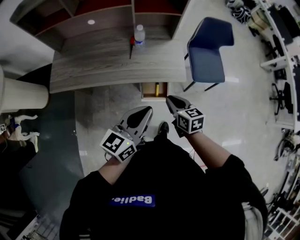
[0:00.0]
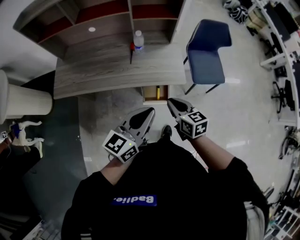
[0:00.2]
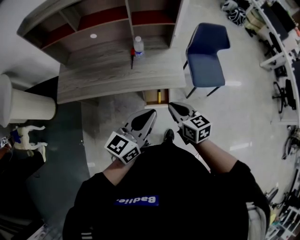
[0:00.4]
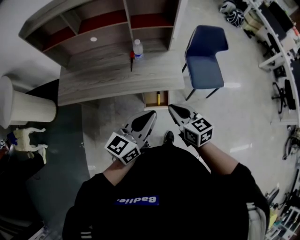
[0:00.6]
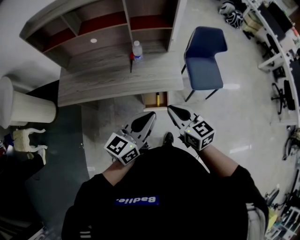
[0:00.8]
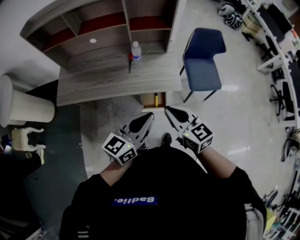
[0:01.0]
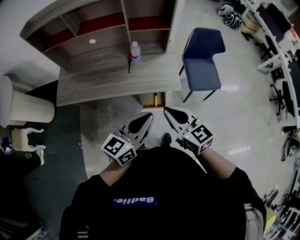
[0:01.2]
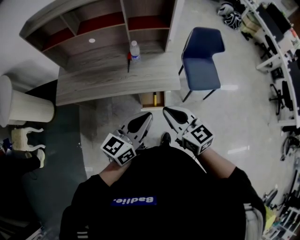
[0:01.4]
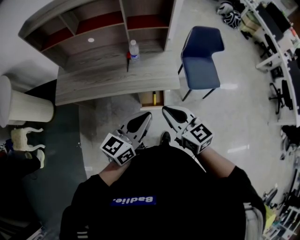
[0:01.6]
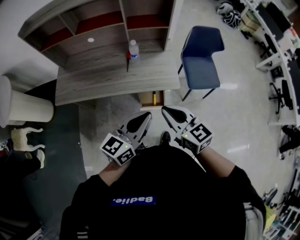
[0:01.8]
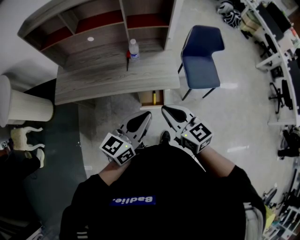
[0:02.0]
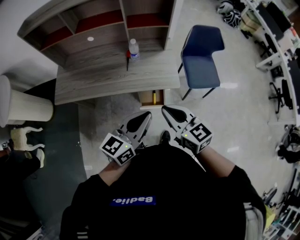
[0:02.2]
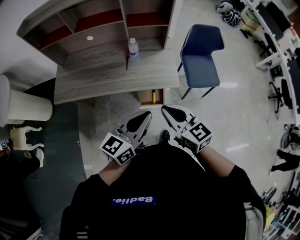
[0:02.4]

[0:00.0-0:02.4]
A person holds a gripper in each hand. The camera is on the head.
0:00.0 to 0:01.2: The left gripper shifts by some 5 cm. The right gripper is displaced upward by approximately 15 cm, and swivels some 30 degrees.
0:01.2 to 0:02.4: Neither gripper changes place.

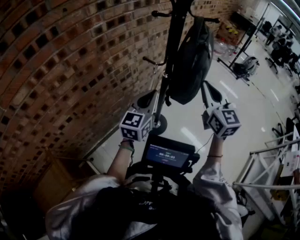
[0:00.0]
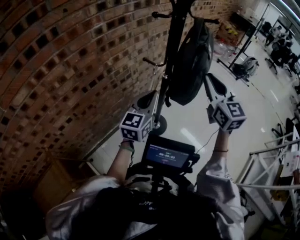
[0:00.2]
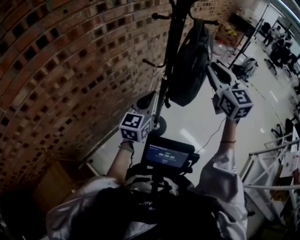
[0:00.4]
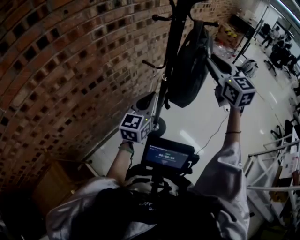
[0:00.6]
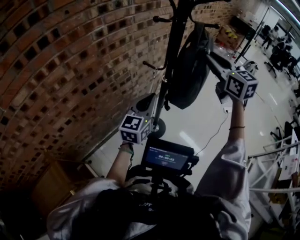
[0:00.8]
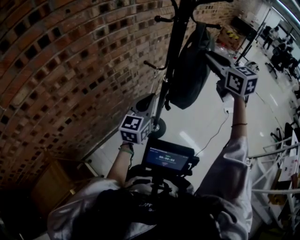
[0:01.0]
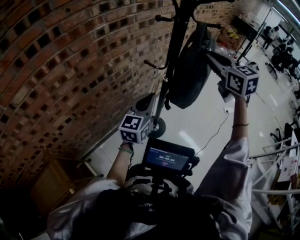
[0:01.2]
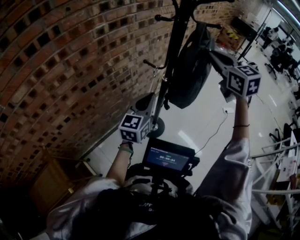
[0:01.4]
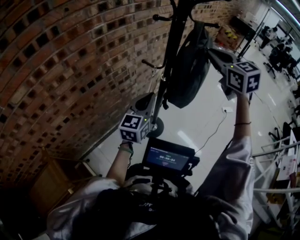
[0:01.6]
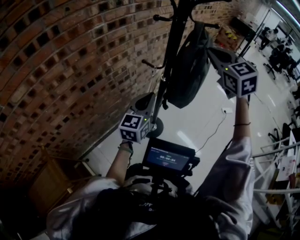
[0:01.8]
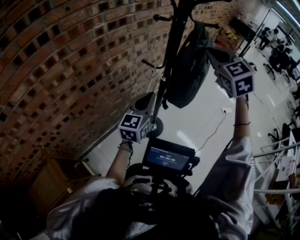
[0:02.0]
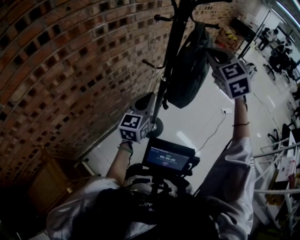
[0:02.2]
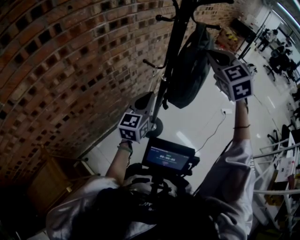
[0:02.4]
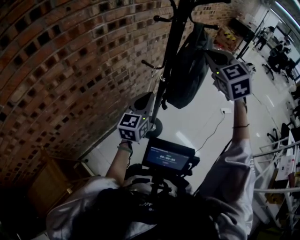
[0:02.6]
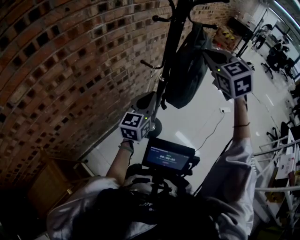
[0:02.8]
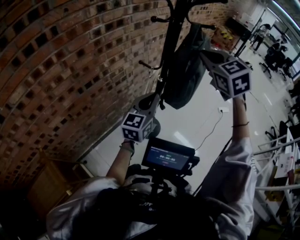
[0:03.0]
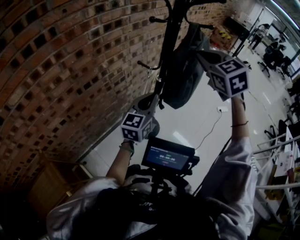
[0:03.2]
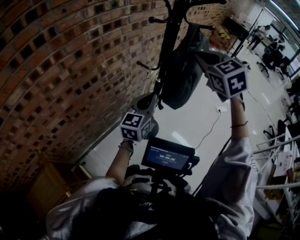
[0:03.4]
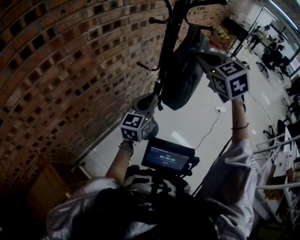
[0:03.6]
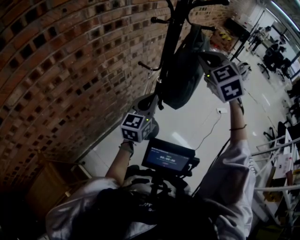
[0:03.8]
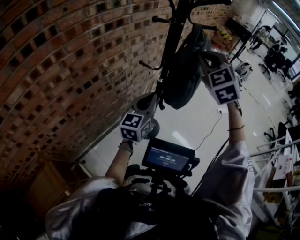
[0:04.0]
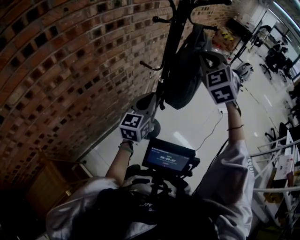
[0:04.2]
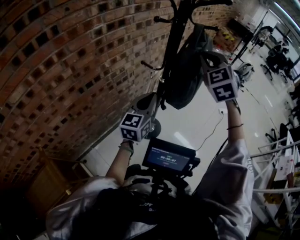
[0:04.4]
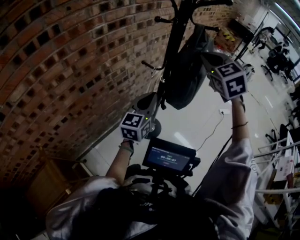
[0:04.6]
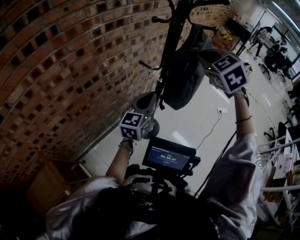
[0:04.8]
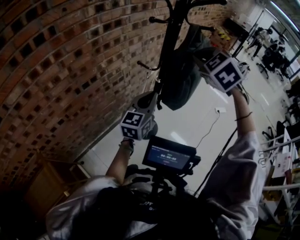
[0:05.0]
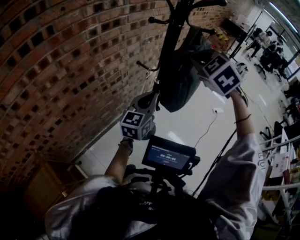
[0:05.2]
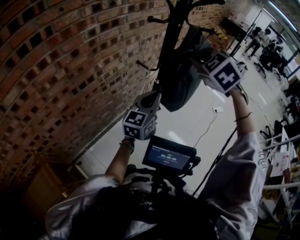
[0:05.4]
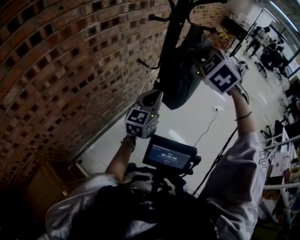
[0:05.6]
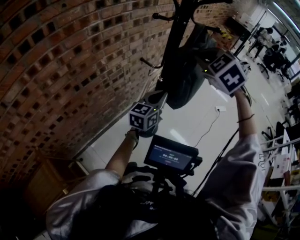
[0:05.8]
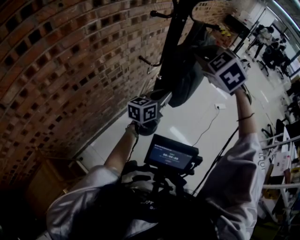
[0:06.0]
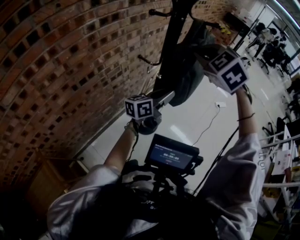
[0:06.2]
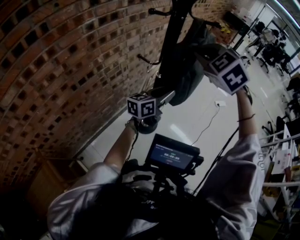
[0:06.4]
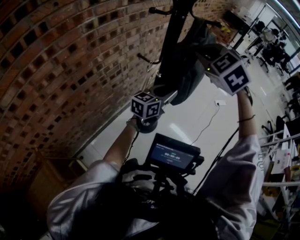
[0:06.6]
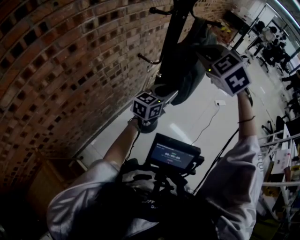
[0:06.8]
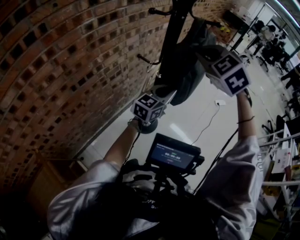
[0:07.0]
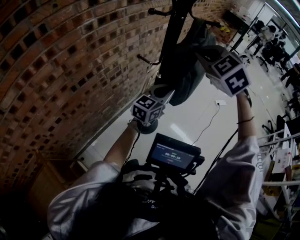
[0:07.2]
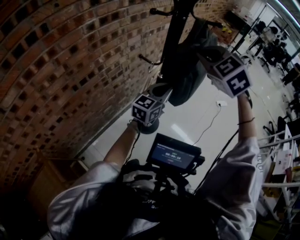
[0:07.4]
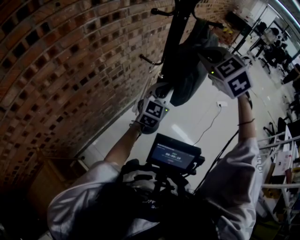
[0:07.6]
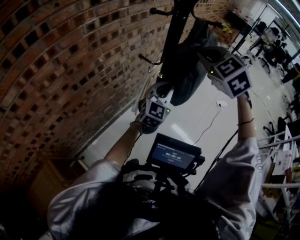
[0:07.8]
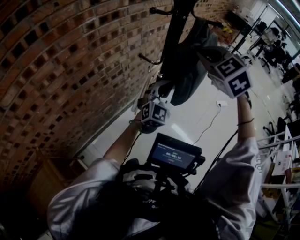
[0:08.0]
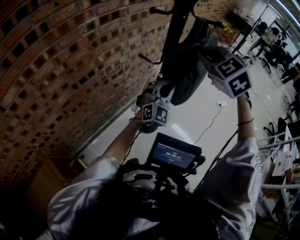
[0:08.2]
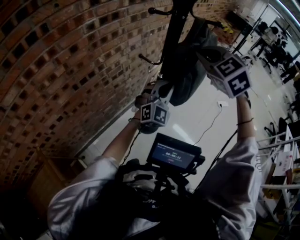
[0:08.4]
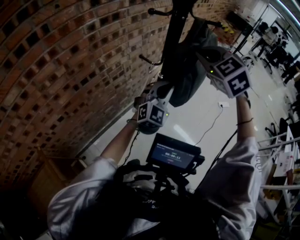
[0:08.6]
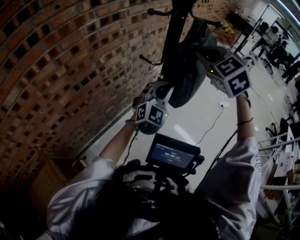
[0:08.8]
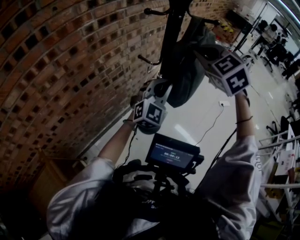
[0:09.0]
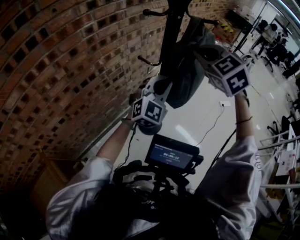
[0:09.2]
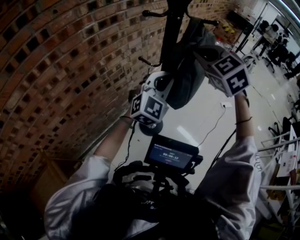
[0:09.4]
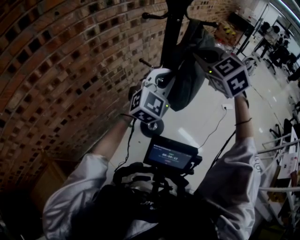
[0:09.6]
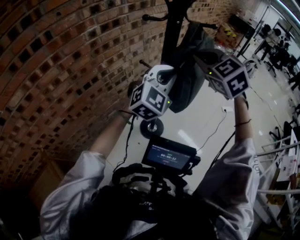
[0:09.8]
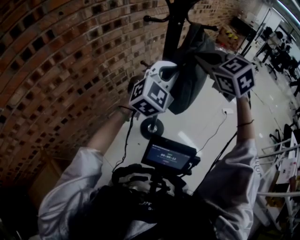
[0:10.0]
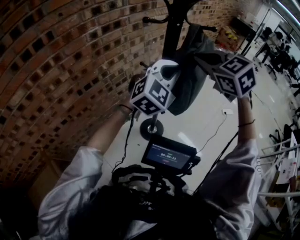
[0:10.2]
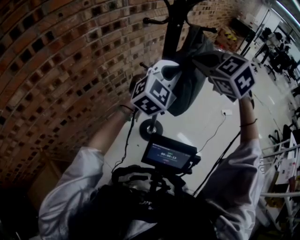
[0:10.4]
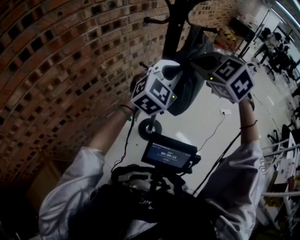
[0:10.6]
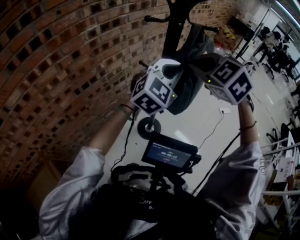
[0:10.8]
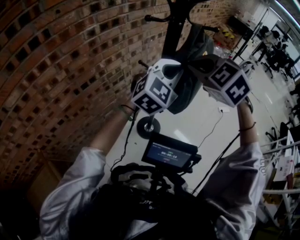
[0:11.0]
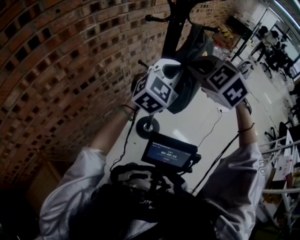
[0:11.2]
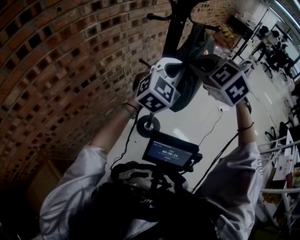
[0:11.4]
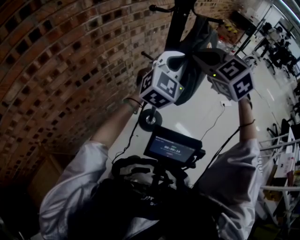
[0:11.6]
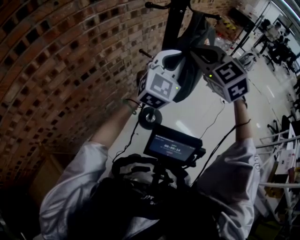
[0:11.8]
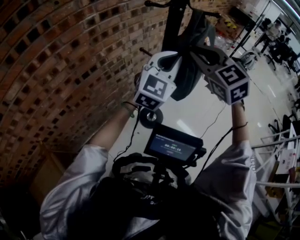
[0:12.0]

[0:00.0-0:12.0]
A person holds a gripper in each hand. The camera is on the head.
0:00.0 to 0:01.6: The right gripper goes roughly 15 cm upward and forward, and opens, then closes once more.
0:04.4 to 0:06.0: The right gripper swivels roughly 20 degrees, while the left gripper shifts approximately 10 cm to the right, and turns by about 30 degrees.
0:06.0 to 0:07.6: The left gripper changes its angle by approximately 40 degrees, and opens and closes again.
0:07.6 to 0:09.0: The left gripper rotates some 20 degrees.
0:09.0 to 0:10.4: The left gripper moves upward, about 10 cm.
0:10.4 to 0:12.0: The grippers make only small movements.

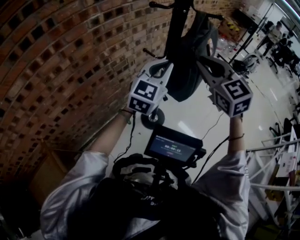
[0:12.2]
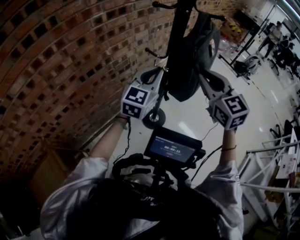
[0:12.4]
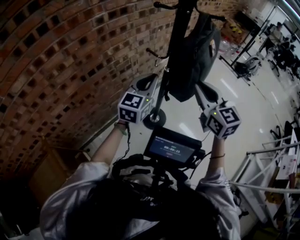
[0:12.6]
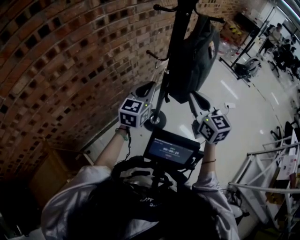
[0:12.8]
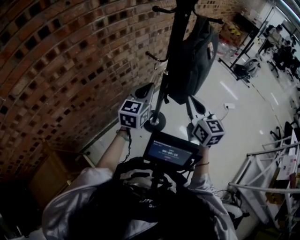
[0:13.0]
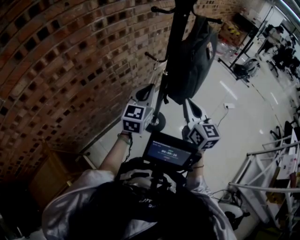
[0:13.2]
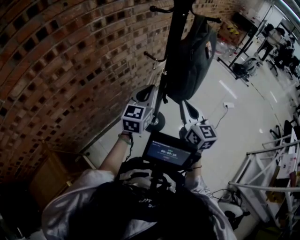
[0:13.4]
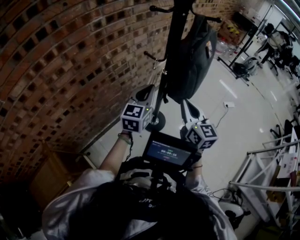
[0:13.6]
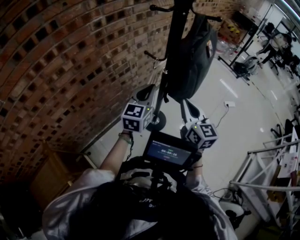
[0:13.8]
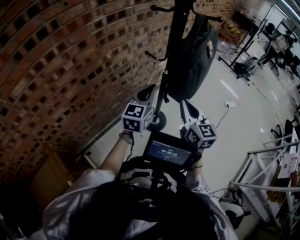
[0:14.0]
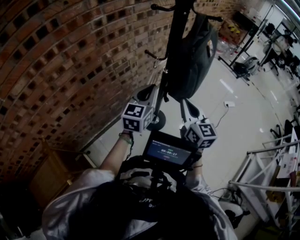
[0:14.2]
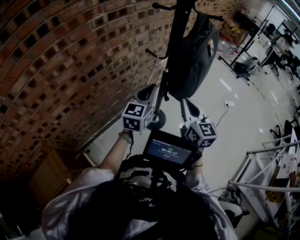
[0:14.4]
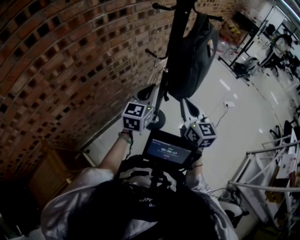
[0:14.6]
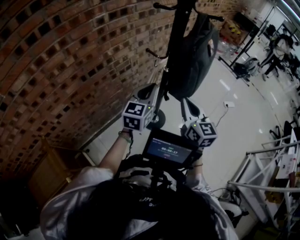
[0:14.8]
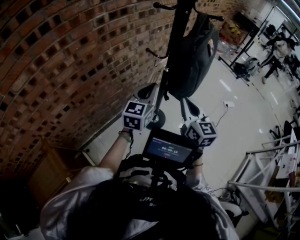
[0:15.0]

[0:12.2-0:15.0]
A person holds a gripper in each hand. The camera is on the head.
0:12.2 to 0:13.6: The left gripper moves downward and to the left, approximately 10 cm, while the right gripper shifts roughly 15 cm downward and backward, and swivels some 30 degrees.
0:13.6 to 0:15.0: The two grippers keep their place.

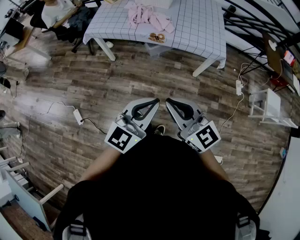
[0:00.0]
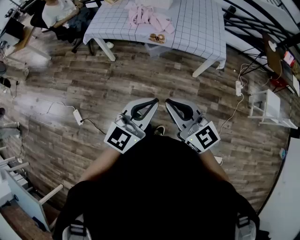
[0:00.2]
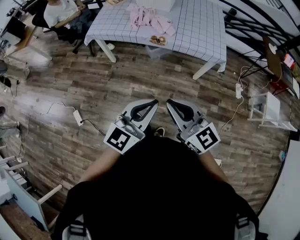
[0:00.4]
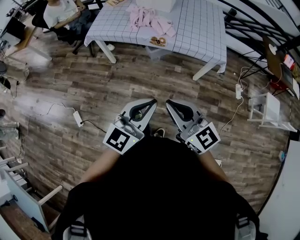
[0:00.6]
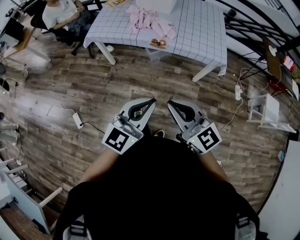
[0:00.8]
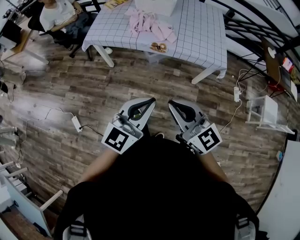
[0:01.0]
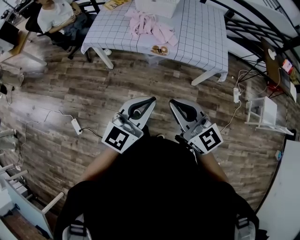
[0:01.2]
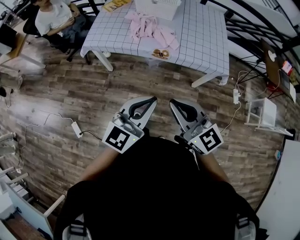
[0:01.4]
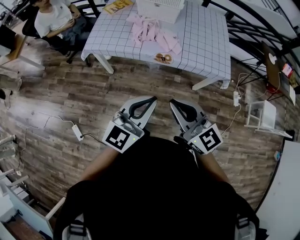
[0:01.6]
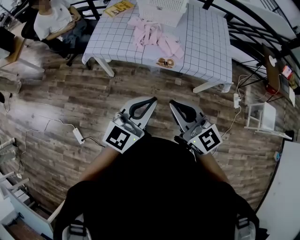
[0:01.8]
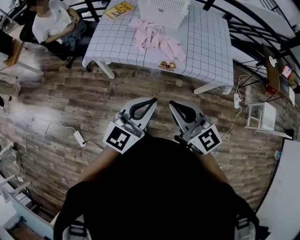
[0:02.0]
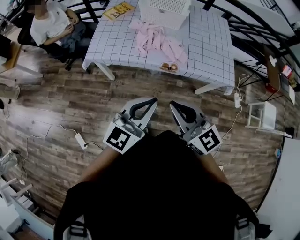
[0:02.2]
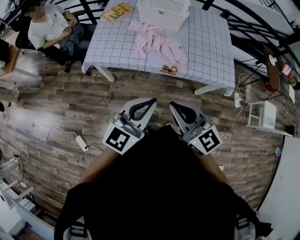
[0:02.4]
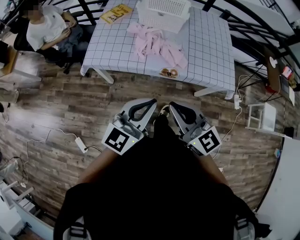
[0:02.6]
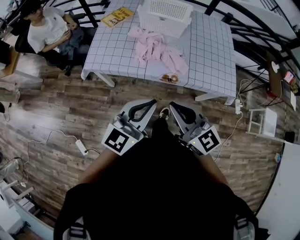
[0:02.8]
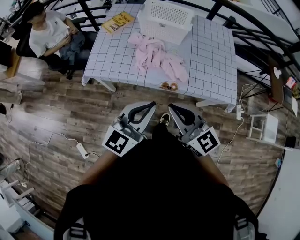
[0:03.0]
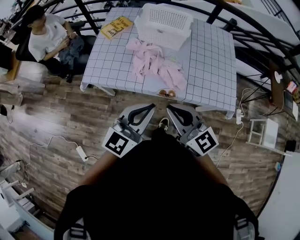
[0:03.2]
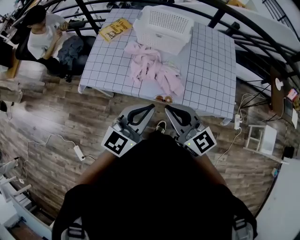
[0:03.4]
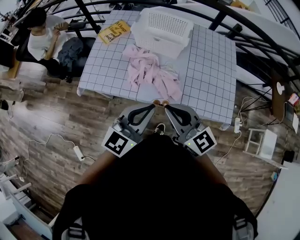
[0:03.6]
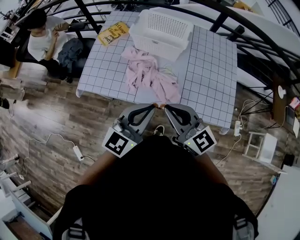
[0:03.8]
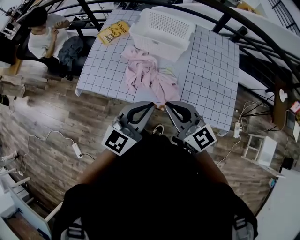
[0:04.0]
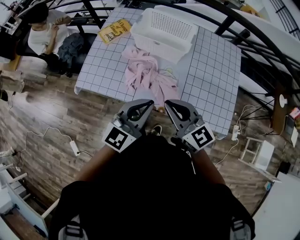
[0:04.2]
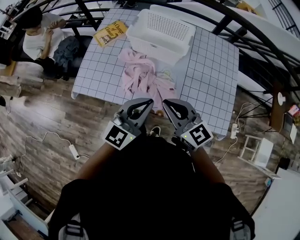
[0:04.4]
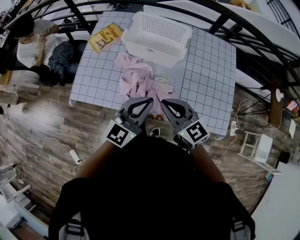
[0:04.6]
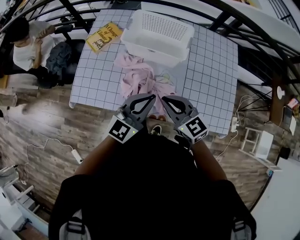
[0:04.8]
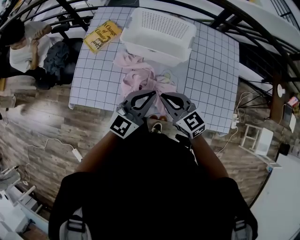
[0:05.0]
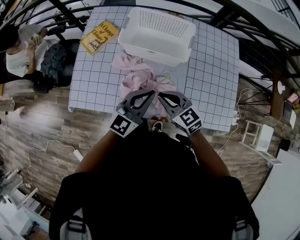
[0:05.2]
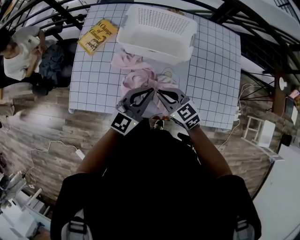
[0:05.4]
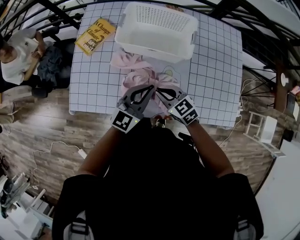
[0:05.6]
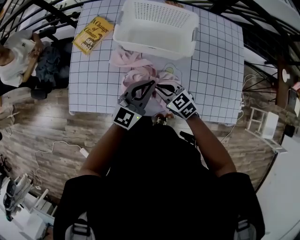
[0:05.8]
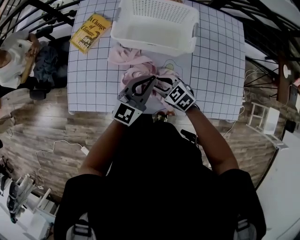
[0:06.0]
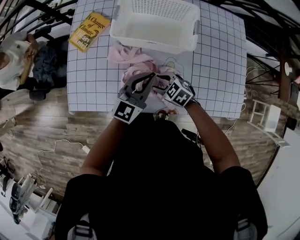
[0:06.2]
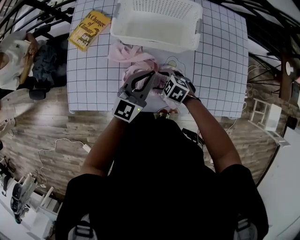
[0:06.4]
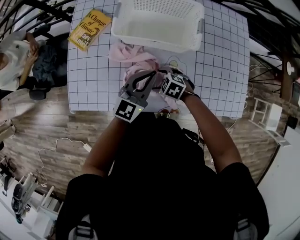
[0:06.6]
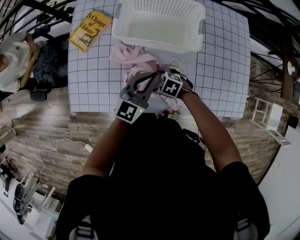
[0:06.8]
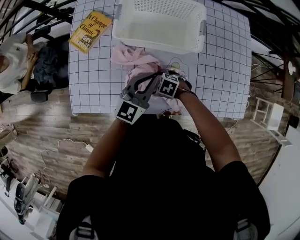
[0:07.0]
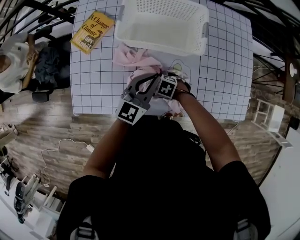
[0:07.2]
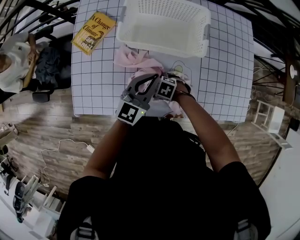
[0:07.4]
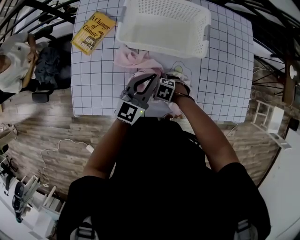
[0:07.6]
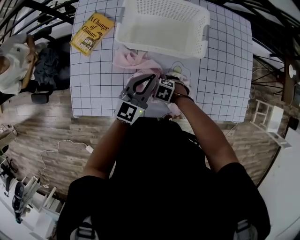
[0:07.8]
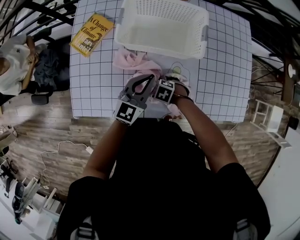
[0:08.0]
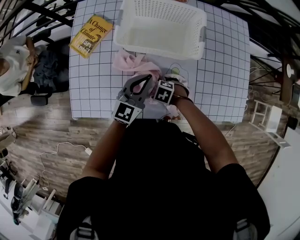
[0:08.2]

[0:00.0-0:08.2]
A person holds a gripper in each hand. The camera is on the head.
0:00.0 to 0:01.6: The left gripper moves forward and to the left, roughly 20 cm; the right gripper is displaced forward by approximately 20 cm.
0:01.6 to 0:03.2: Both grippers move forward, some 25 cm.
0:03.2 to 0:05.0: The right gripper travels forward and downward by approximately 30 cm, while the left gripper goes about 25 cm forward.
0:05.0 to 0:06.6: The right gripper travels downward by some 25 cm, tips its fingers downward by about 40 degrees, and opens its fingers; the left gripper moves downward, about 10 cm.
0:06.6 to 0:08.2: The right gripper changes place by about 5 cm.
